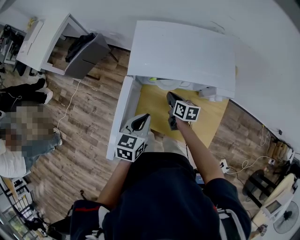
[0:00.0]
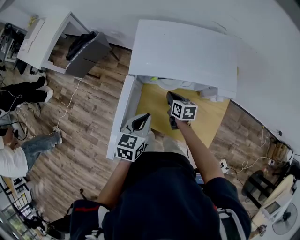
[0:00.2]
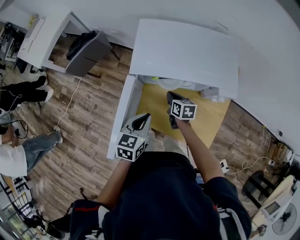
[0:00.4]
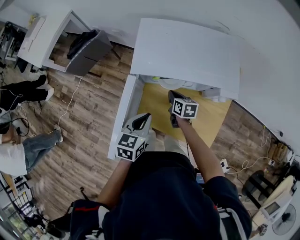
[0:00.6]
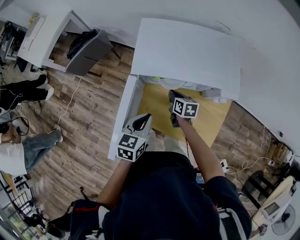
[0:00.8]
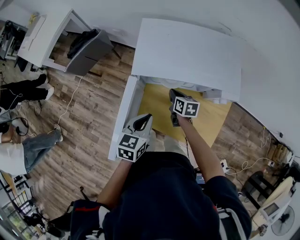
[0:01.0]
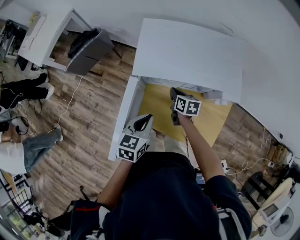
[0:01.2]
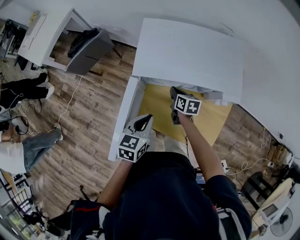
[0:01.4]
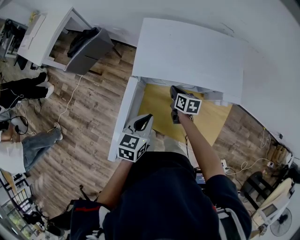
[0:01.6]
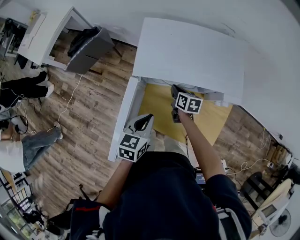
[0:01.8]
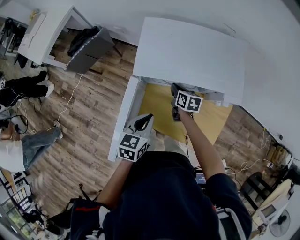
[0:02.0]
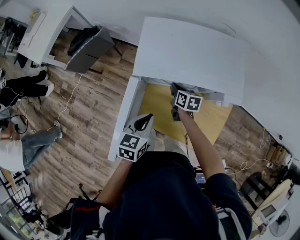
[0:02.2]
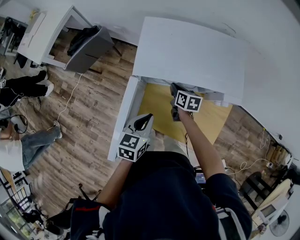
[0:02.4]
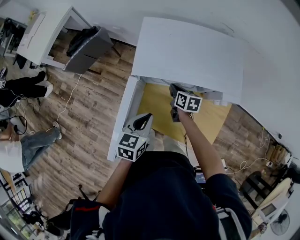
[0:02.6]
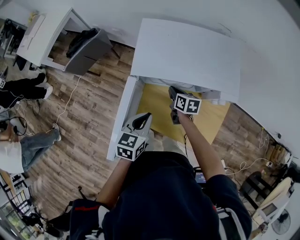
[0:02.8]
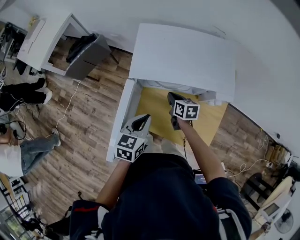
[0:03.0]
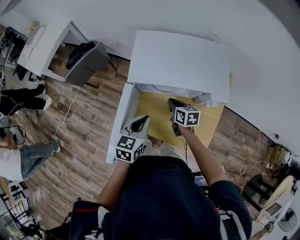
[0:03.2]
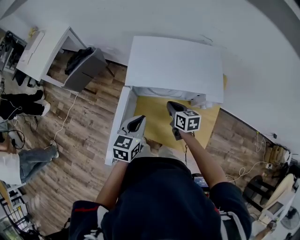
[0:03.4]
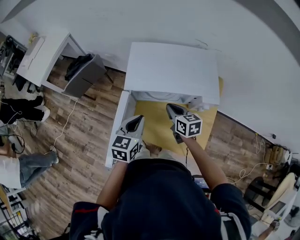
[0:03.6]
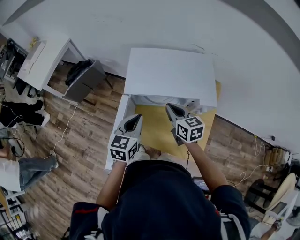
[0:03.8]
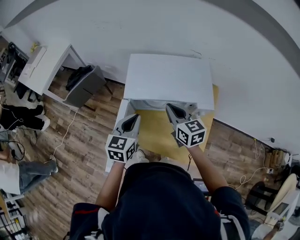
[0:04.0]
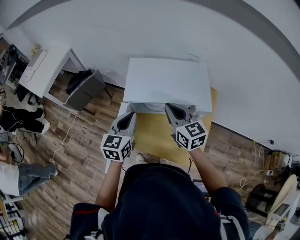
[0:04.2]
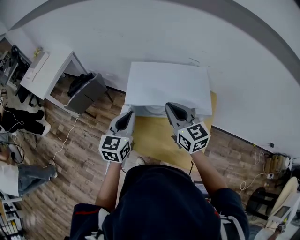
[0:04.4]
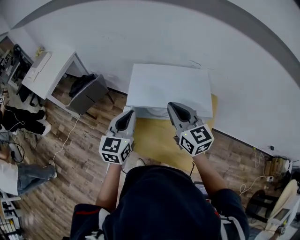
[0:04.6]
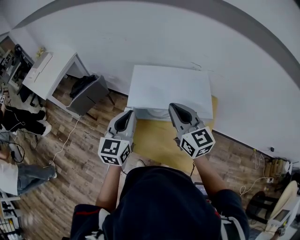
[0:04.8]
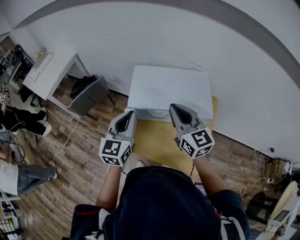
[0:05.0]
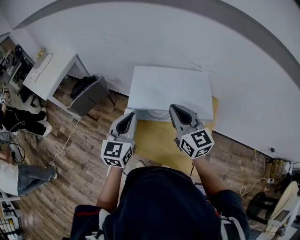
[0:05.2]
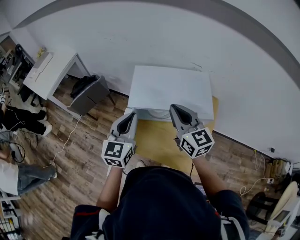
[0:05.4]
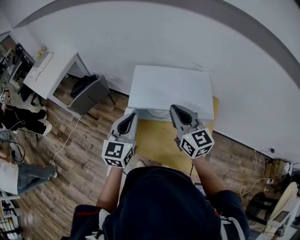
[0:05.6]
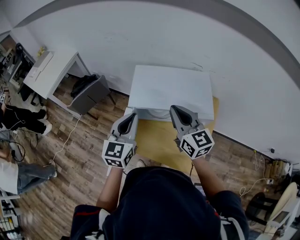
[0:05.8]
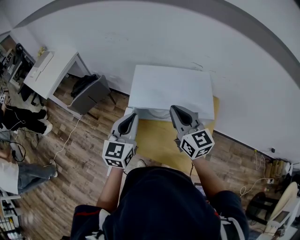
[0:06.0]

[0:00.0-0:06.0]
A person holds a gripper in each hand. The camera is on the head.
0:00.0 to 0:03.0: The grippers make only small movements.
0:03.0 to 0:04.4: The left gripper heads upward and forward, covering about 15 cm, and turns by about 20 degrees, while the right gripper heads upward, covering roughly 30 cm, and swivels roughly 40 degrees.
0:04.4 to 0:06.0: The grippers stay close to where they were, moving slightly.

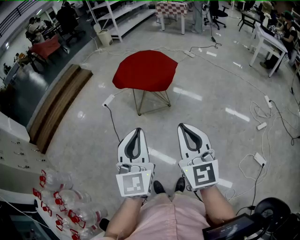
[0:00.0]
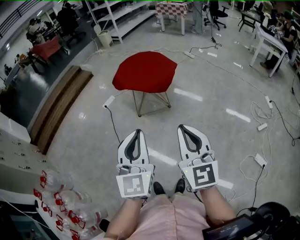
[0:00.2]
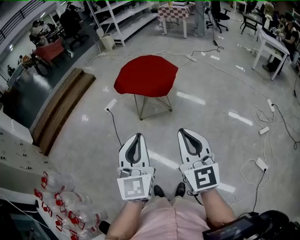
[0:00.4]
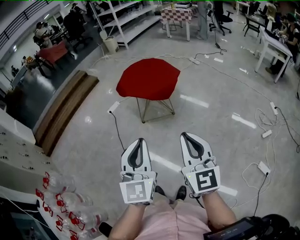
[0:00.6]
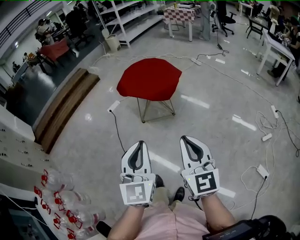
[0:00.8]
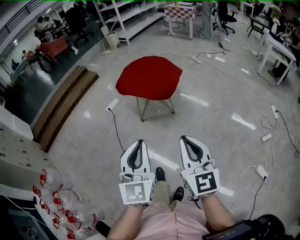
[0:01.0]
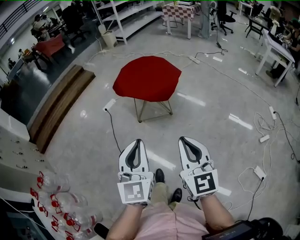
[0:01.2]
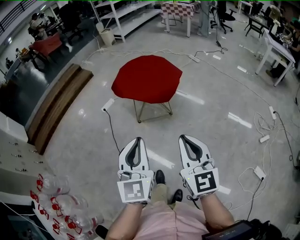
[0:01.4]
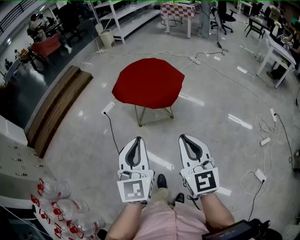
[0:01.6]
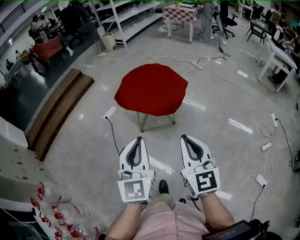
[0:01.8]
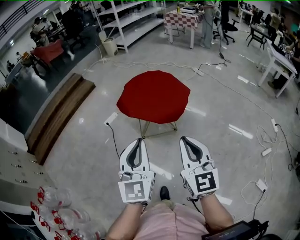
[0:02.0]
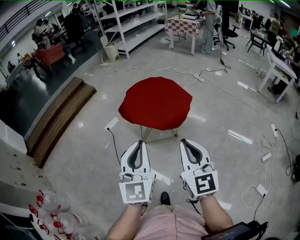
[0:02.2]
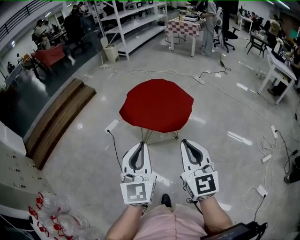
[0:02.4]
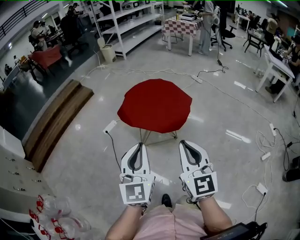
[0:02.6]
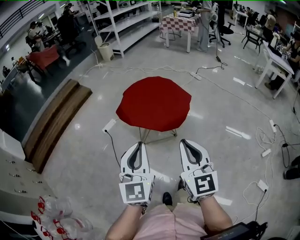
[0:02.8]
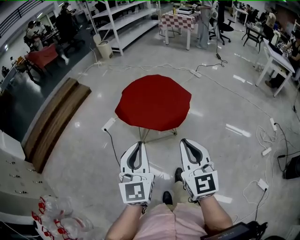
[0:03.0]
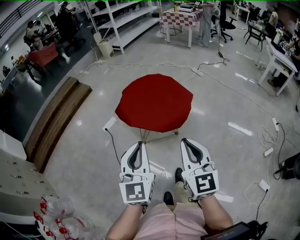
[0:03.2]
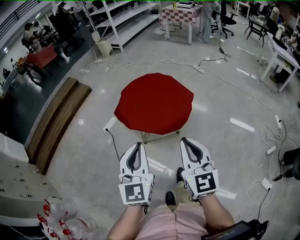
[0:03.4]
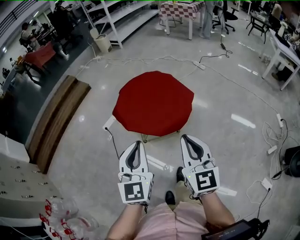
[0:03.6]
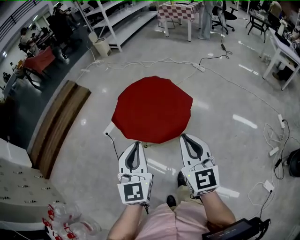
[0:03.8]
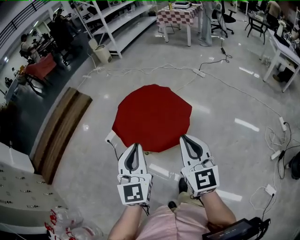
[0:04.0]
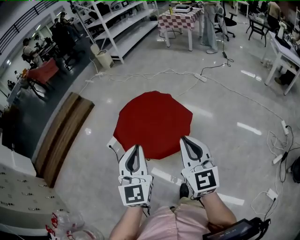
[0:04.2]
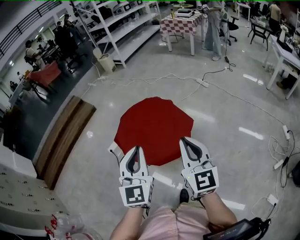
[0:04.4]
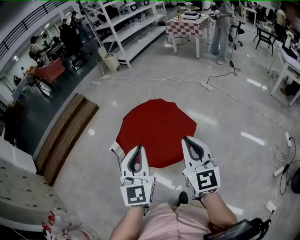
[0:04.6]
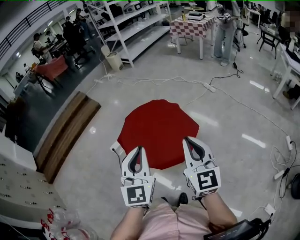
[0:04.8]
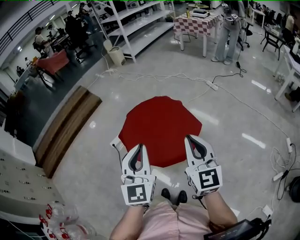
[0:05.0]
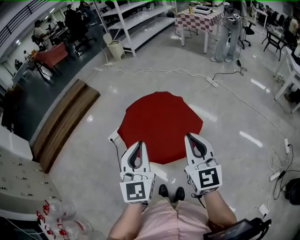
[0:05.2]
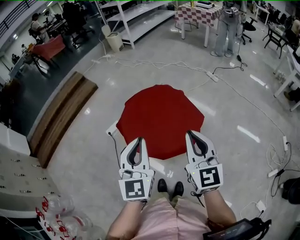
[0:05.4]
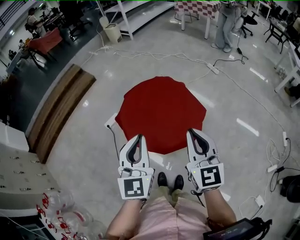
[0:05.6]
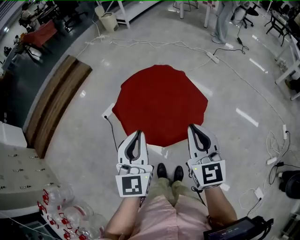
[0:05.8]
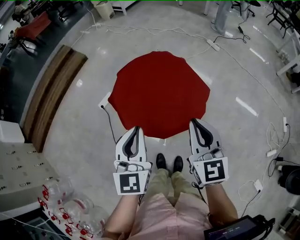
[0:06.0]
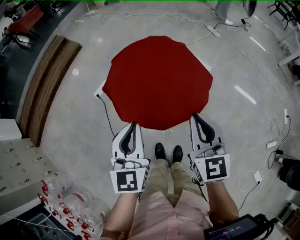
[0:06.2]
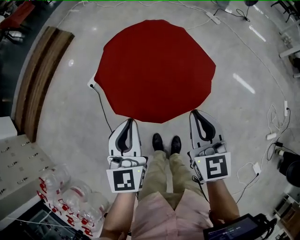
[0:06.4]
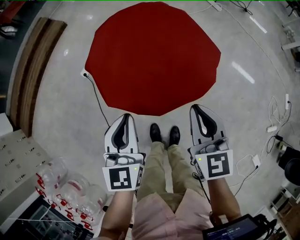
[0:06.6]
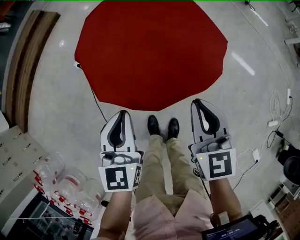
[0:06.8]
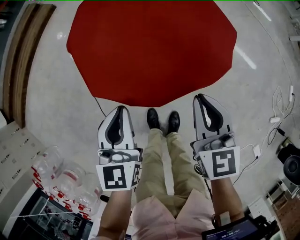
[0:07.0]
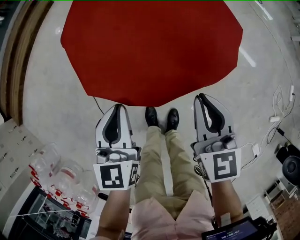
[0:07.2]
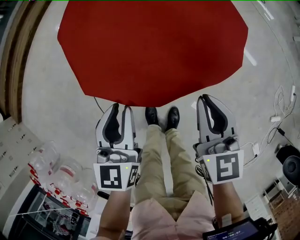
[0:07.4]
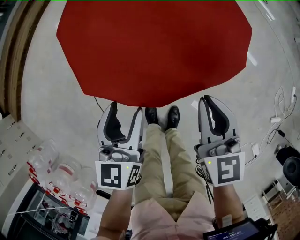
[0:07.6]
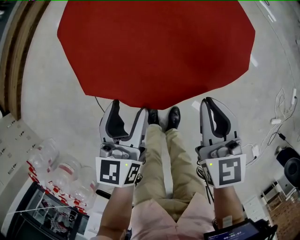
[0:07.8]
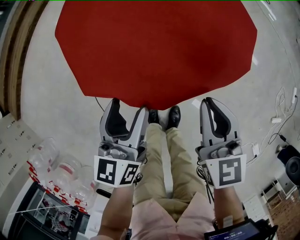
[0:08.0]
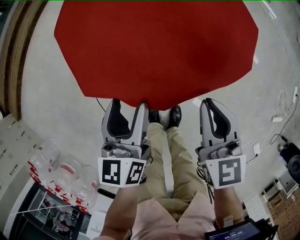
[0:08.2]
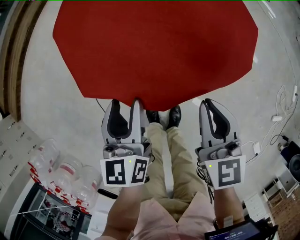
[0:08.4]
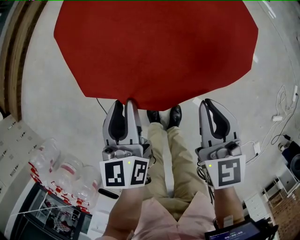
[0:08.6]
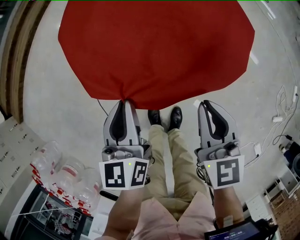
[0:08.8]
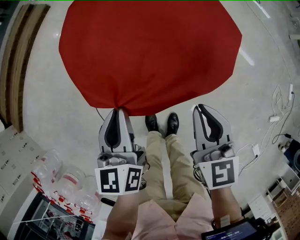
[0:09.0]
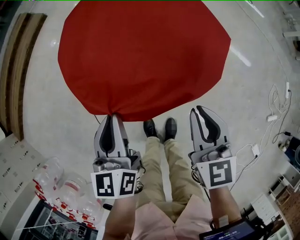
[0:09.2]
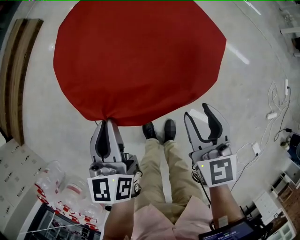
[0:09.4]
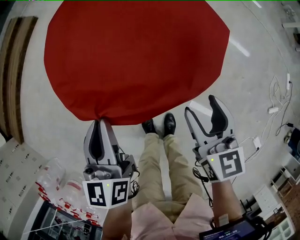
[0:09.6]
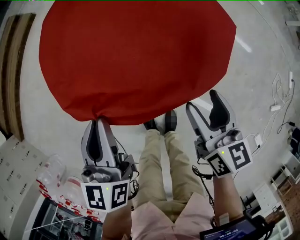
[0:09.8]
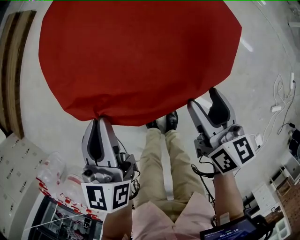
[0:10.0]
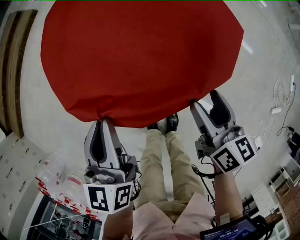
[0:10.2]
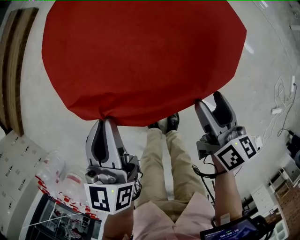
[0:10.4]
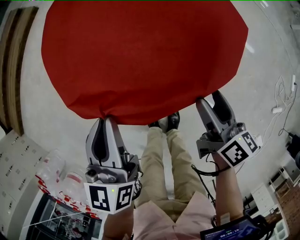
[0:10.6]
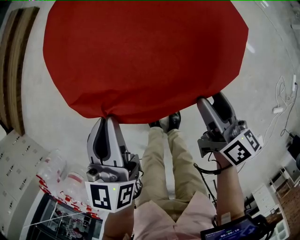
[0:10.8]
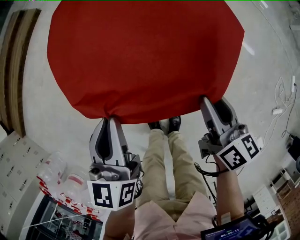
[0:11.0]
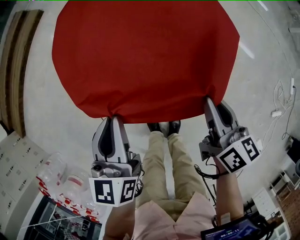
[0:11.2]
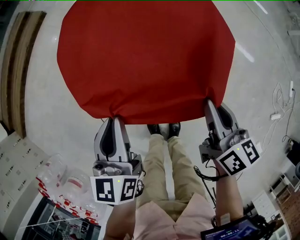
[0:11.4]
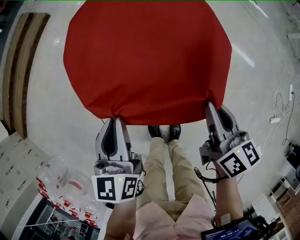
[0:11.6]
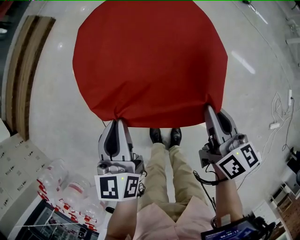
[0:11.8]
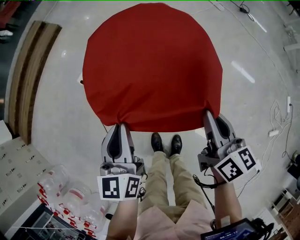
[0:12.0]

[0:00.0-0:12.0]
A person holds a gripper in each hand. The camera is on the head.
0:00.0 to 0:01.6: Both grippers travel together forward, some 15 cm.
0:01.6 to 0:03.0: The grippers both shift forward and to the left by roughly 15 cm.
0:03.0 to 0:04.4: Both grippers move forward and to the right, some 25 cm.
0:04.4 to 0:06.0: The grippers both shift downward, to the left and forward by approximately 15 cm.
0:06.0 to 0:07.6: Both grippers travel together downward, some 30 cm. The left gripper changes its angle by about 30 degrees, and opens its fingers.
0:07.6 to 0:09.0: The left gripper closes its fingers.
0:09.0 to 0:10.4: The right gripper goes approximately 10 cm to the right and downward, rotates about 40 degrees, and opens up.
0:10.4 to 0:12.0: The left gripper moves roughly 5 cm. The right gripper shifts some 10 cm upward, and closes its fingers.

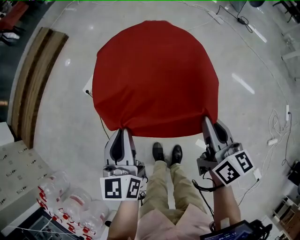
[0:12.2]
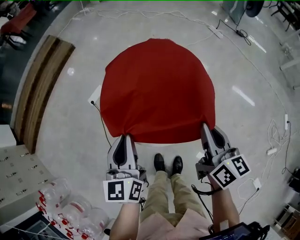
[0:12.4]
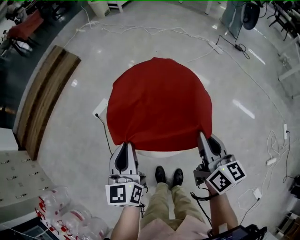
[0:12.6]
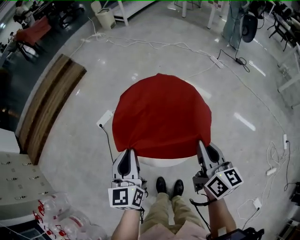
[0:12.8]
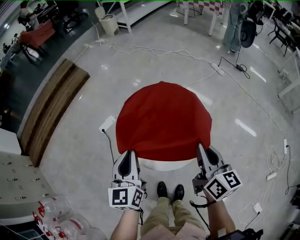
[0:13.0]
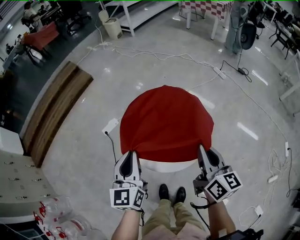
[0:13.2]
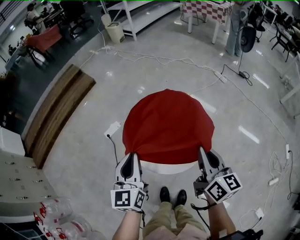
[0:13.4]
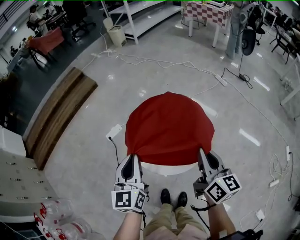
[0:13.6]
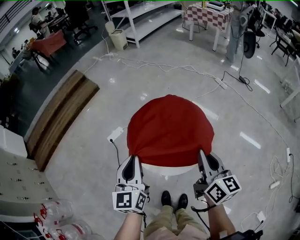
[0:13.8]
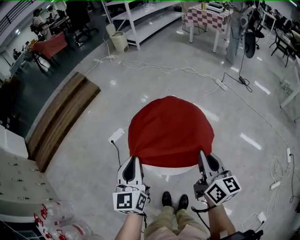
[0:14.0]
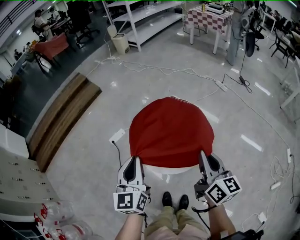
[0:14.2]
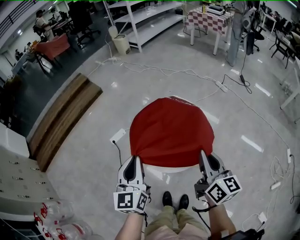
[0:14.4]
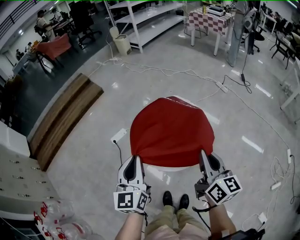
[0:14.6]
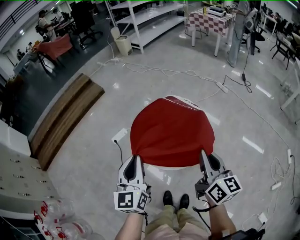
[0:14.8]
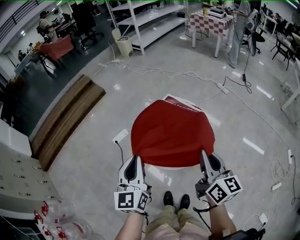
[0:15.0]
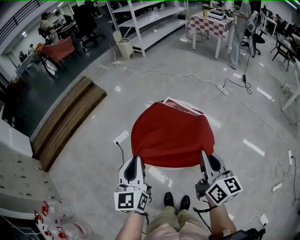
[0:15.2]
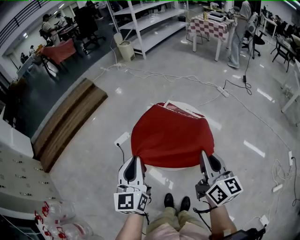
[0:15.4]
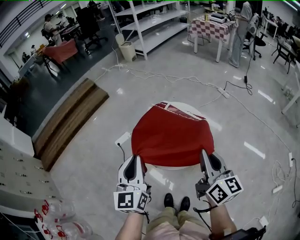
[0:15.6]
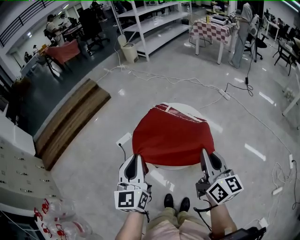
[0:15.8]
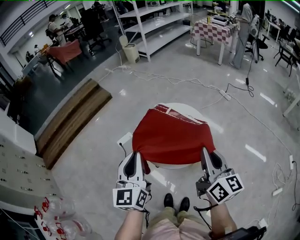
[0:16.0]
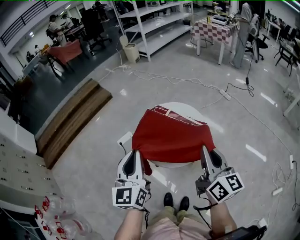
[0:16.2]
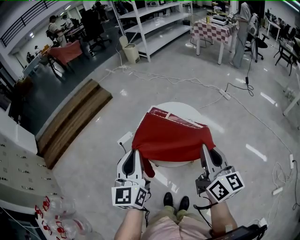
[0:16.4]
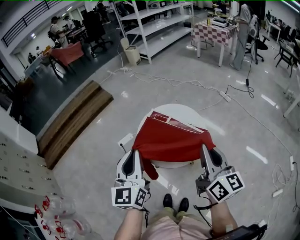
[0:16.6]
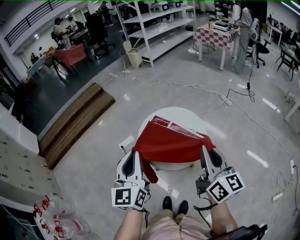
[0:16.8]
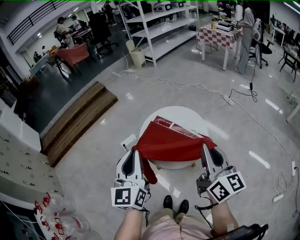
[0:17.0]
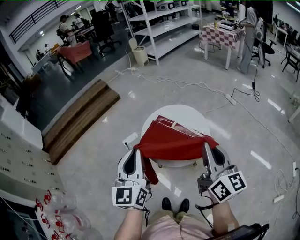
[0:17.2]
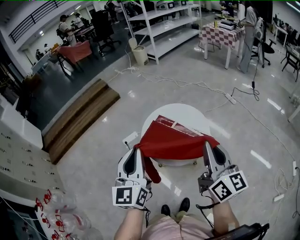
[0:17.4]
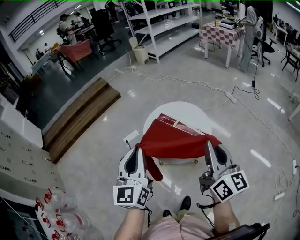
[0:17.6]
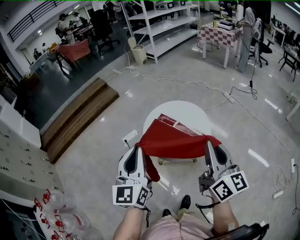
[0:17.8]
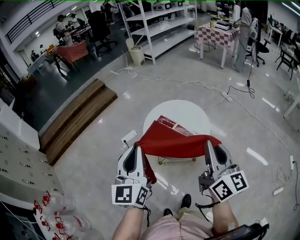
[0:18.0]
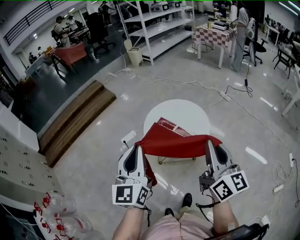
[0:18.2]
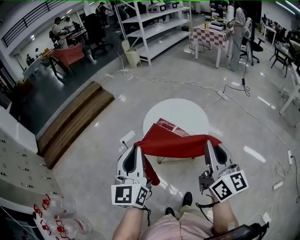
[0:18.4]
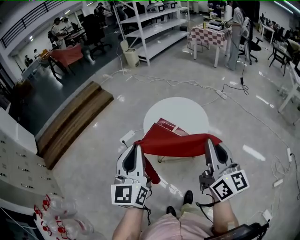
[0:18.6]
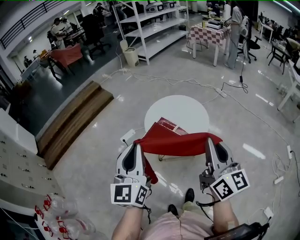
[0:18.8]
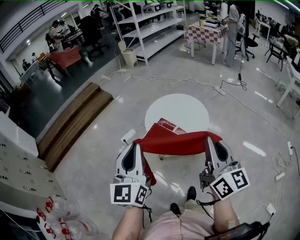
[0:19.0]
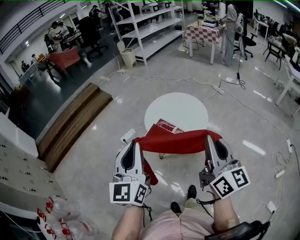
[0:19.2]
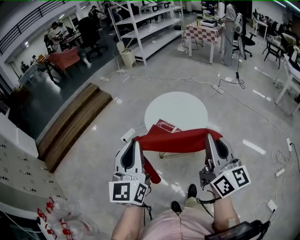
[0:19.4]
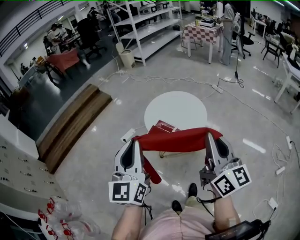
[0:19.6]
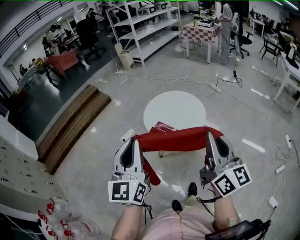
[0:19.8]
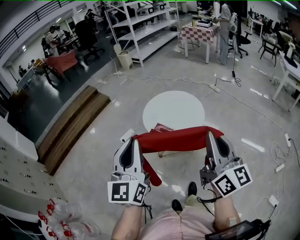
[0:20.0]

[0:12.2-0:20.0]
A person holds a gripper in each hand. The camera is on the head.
0:12.2 to 0:13.8: The two grippers go roughly 15 cm upward.
0:13.8 to 0:15.4: Both grippers travel together backward and upward, roughly 10 cm.
0:15.4 to 0:16.8: The two grippers go some 5 cm upward.
0:16.8 to 0:18.4: The grippers both shift backward and to the left by roughly 10 cm.
0:18.4 to 0:20.0: Both grippers move backward, roughly 10 cm.
